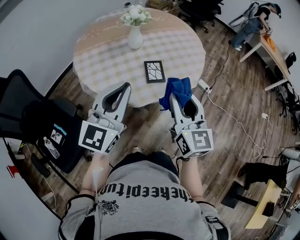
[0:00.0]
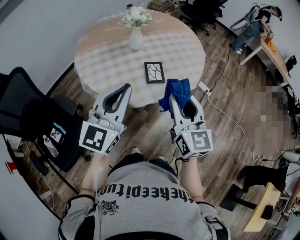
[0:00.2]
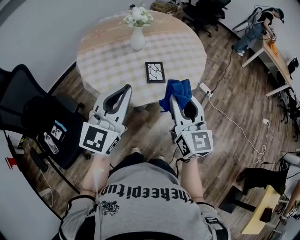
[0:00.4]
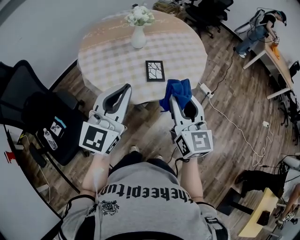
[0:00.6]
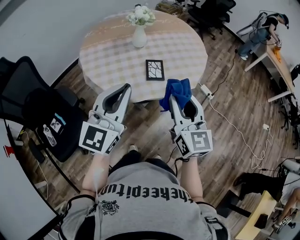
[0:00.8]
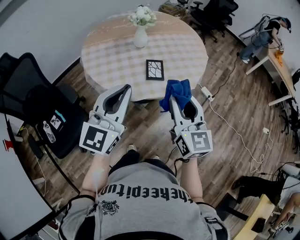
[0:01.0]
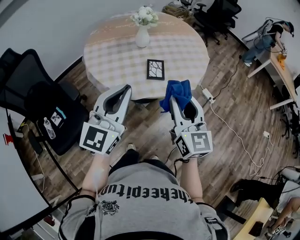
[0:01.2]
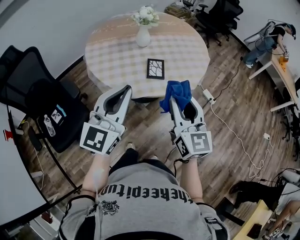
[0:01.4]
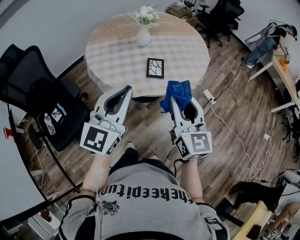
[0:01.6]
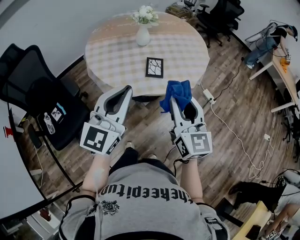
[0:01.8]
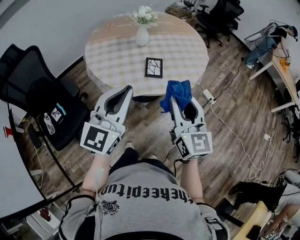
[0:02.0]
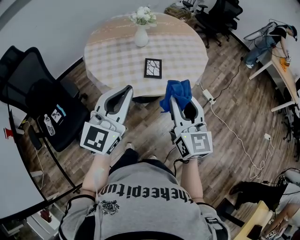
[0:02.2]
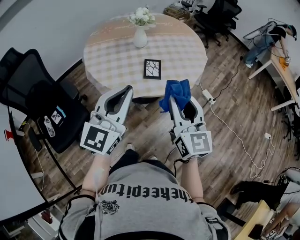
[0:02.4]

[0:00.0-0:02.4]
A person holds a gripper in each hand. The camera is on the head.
0:00.0 to 0:01.2: The right gripper moves roughly 5 cm; the left gripper travels backward and to the right by some 10 cm.
0:01.2 to 0:02.4: The grippers move only a little.

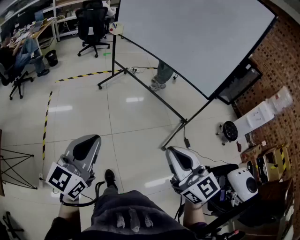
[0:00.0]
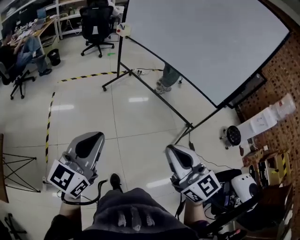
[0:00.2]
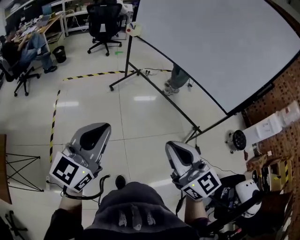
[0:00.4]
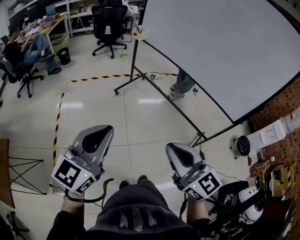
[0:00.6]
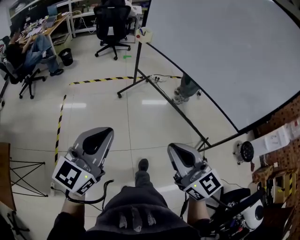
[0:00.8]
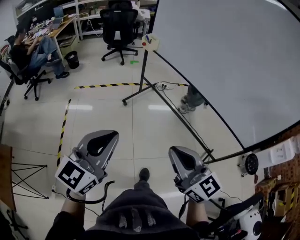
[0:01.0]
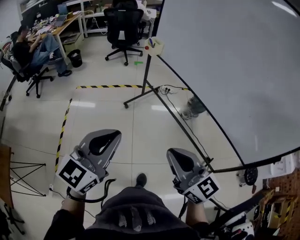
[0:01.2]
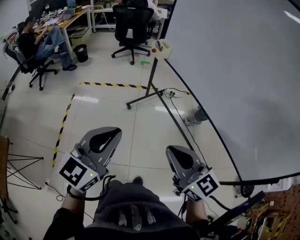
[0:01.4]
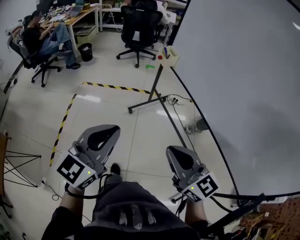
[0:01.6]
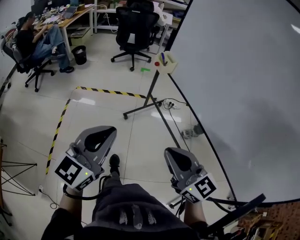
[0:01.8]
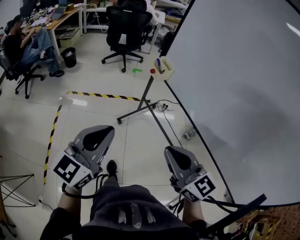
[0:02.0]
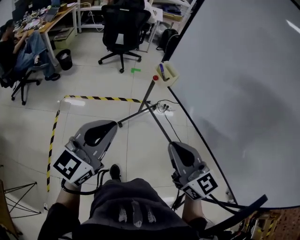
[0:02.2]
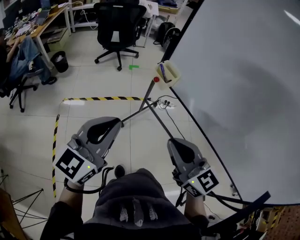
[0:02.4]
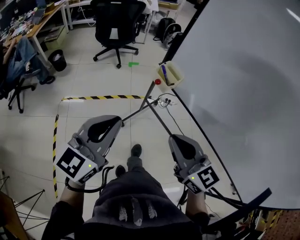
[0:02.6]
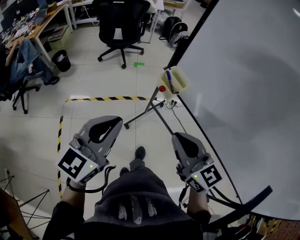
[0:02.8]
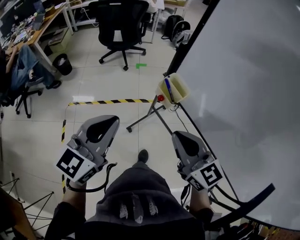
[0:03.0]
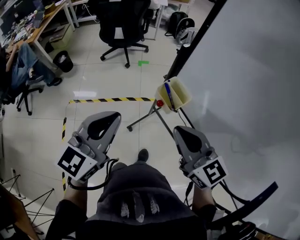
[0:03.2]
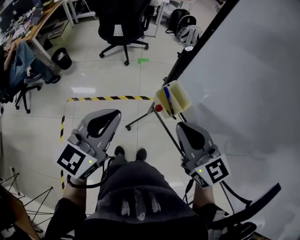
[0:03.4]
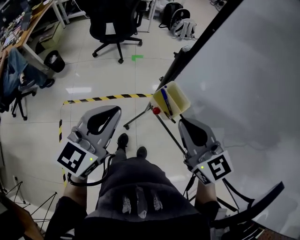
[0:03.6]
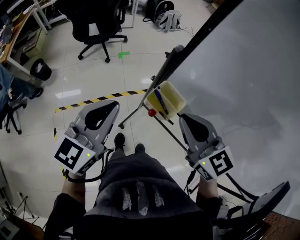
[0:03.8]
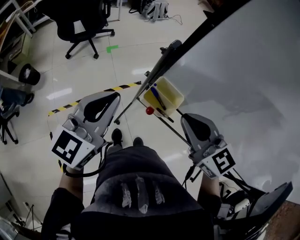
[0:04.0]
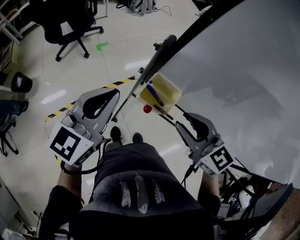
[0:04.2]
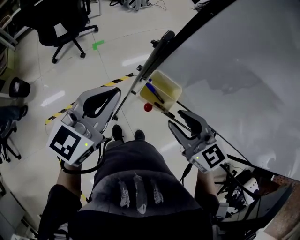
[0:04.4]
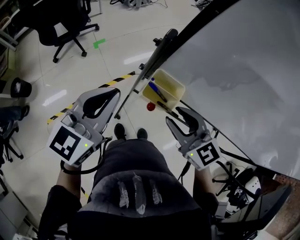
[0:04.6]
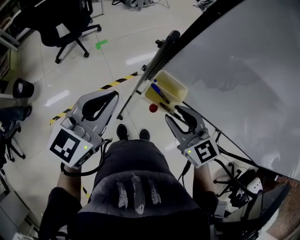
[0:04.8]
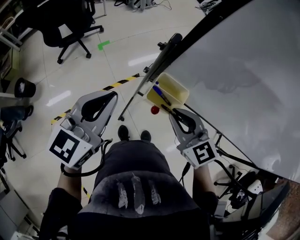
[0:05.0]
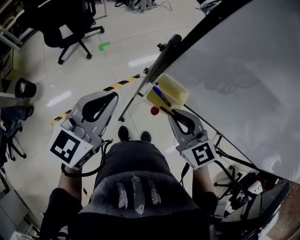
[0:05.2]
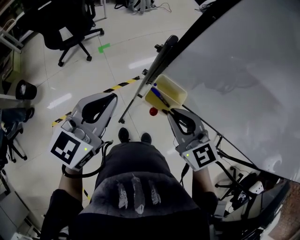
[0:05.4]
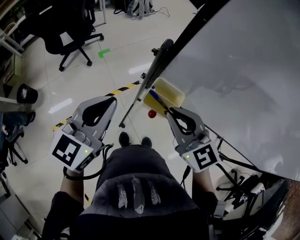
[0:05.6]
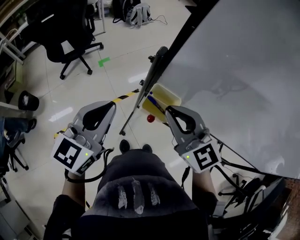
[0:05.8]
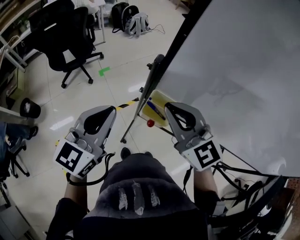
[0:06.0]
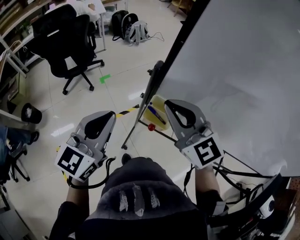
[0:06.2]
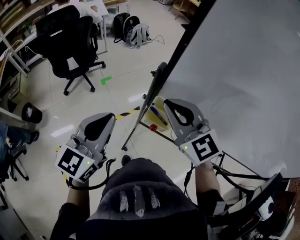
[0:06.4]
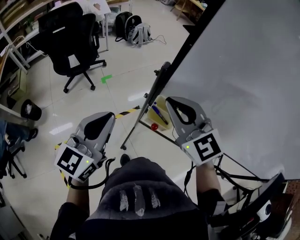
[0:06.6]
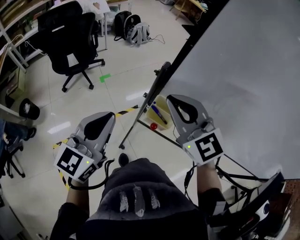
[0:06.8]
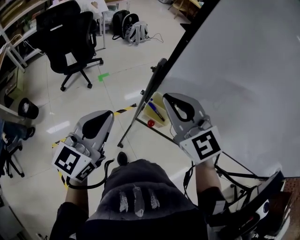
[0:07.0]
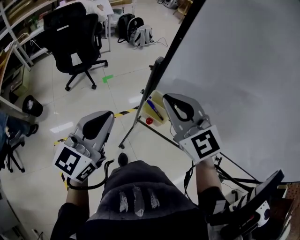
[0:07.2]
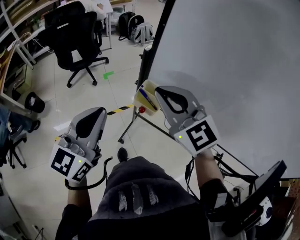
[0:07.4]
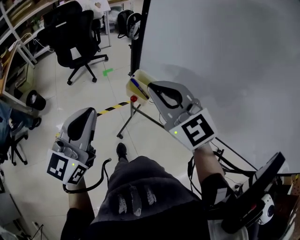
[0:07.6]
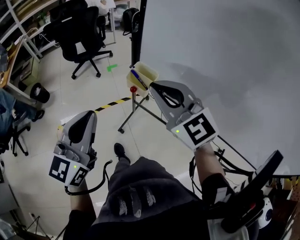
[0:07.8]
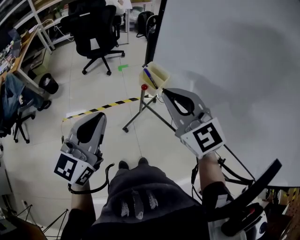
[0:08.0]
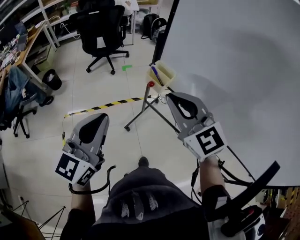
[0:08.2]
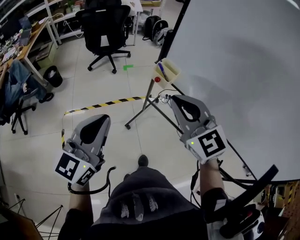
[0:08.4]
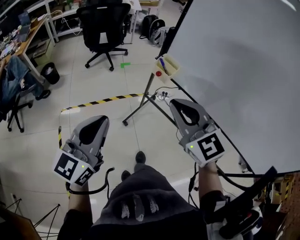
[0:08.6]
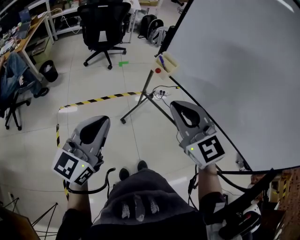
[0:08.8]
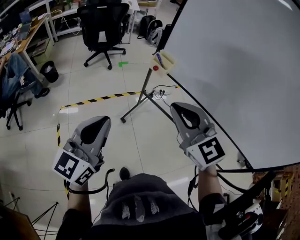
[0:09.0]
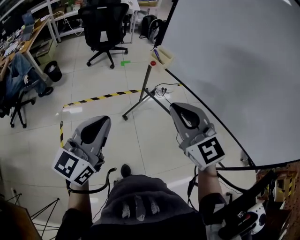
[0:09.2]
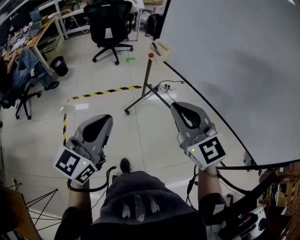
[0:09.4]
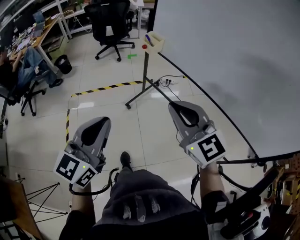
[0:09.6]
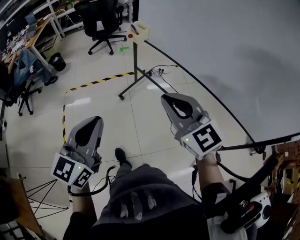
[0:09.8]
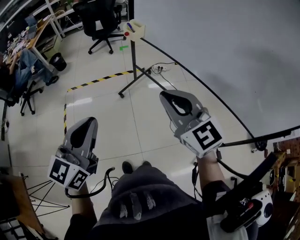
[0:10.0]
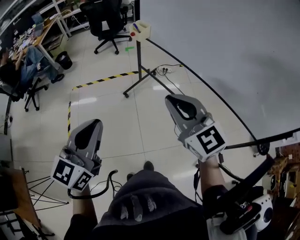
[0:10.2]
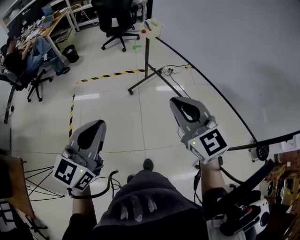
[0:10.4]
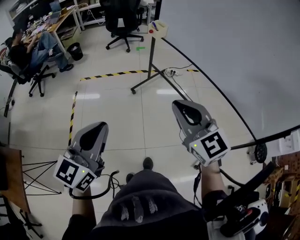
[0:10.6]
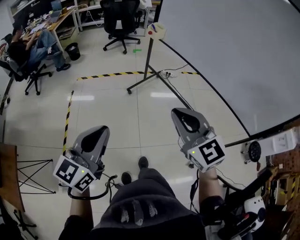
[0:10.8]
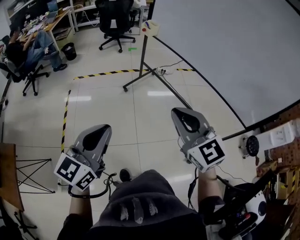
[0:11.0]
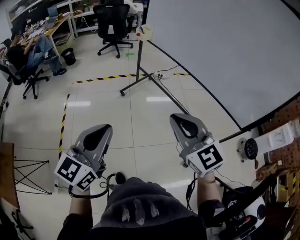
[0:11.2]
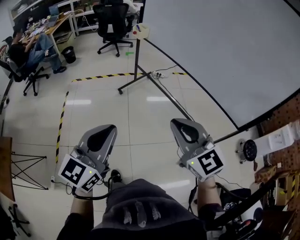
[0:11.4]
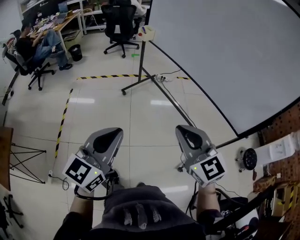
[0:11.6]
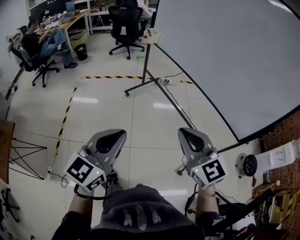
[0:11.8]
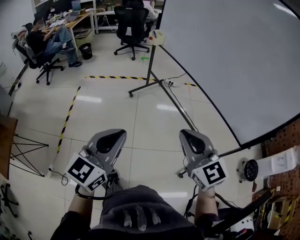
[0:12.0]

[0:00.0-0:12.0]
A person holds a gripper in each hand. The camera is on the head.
0:00.0 to 0:01.6: The two grippers travel together, forward, some 50 cm. The right gripper changes its angle by some 20 degrees.
0:01.6 to 0:03.0: Both grippers are carried forward, some 50 cm.
0:03.0 to 0:04.4: The left gripper moves forward, roughly 20 cm, and changes its angle by about 30 degrees. Meanwhile the right gripper is displaced forward and downward by roughly 15 cm, changes its angle by roughly 20 degrees, and opens.
0:04.4 to 0:06.0: The right gripper is displaced upward by roughly 10 cm, swivels about 20 degrees, and closes up.
0:06.0 to 0:07.6: The right gripper is displaced backward by approximately 10 cm; the left gripper is displaced backward by approximately 15 cm.
0:07.6 to 0:09.0: The two grippers go roughly 25 cm backward.
0:09.0 to 0:10.4: Both grippers travel together backward and to the right, some 35 cm.
0:10.4 to 0:12.0: Both grippers move backward and to the right, some 25 cm.

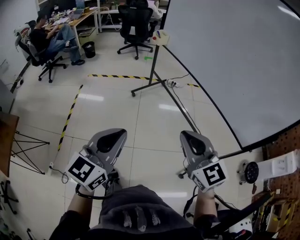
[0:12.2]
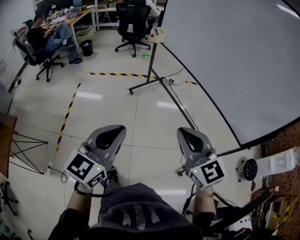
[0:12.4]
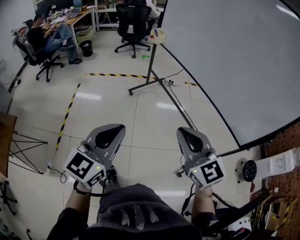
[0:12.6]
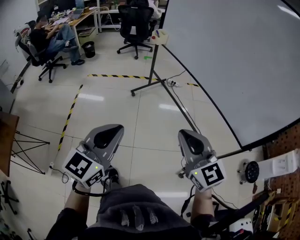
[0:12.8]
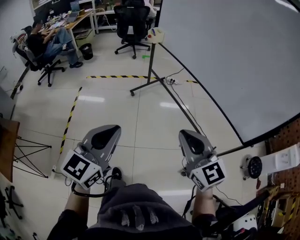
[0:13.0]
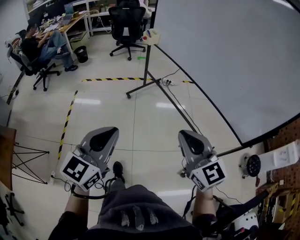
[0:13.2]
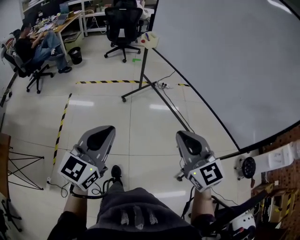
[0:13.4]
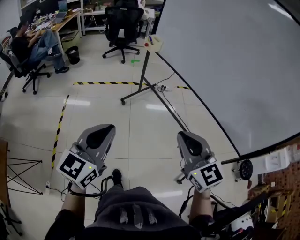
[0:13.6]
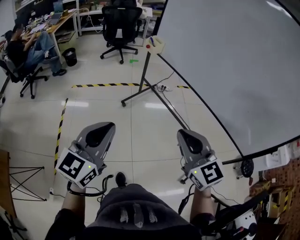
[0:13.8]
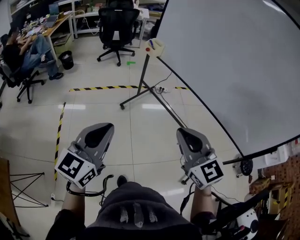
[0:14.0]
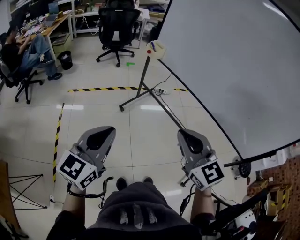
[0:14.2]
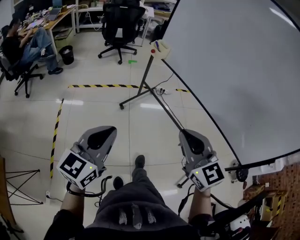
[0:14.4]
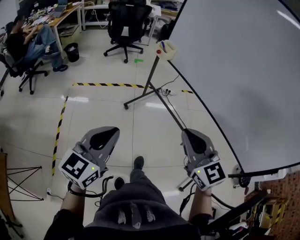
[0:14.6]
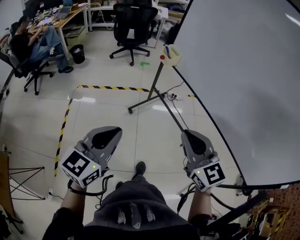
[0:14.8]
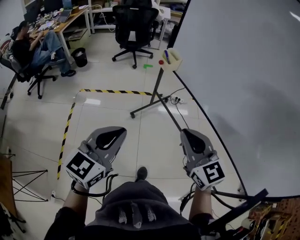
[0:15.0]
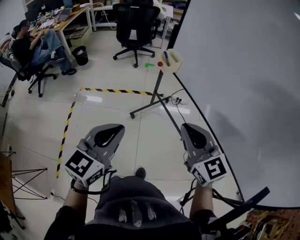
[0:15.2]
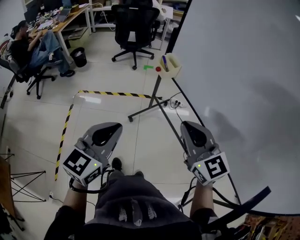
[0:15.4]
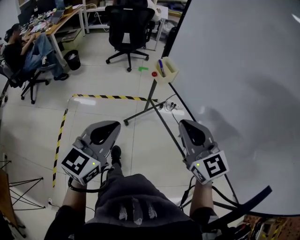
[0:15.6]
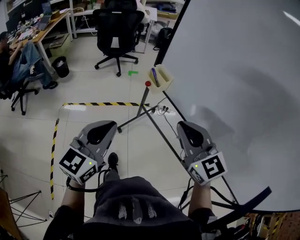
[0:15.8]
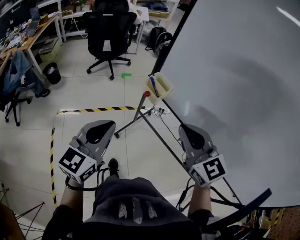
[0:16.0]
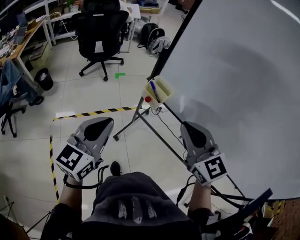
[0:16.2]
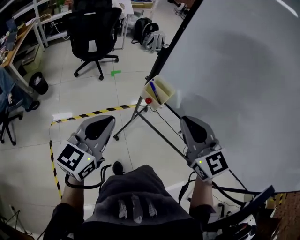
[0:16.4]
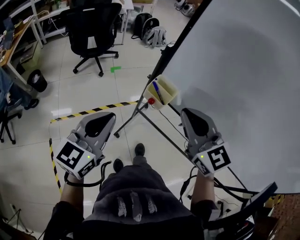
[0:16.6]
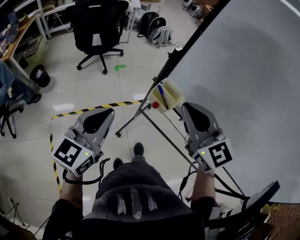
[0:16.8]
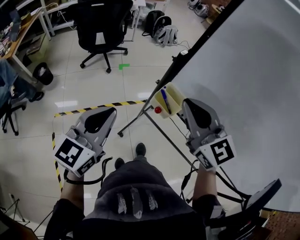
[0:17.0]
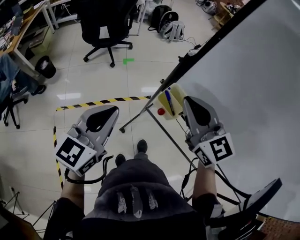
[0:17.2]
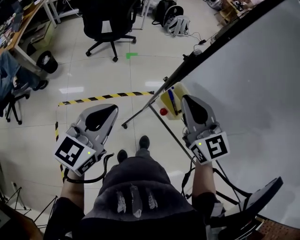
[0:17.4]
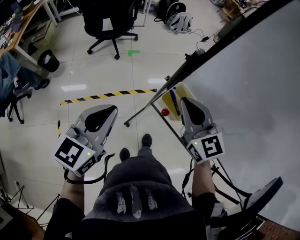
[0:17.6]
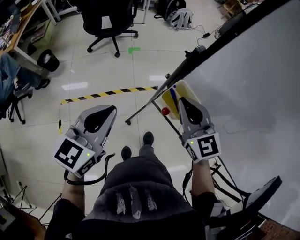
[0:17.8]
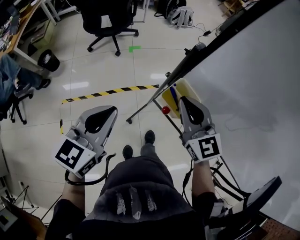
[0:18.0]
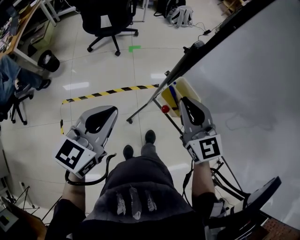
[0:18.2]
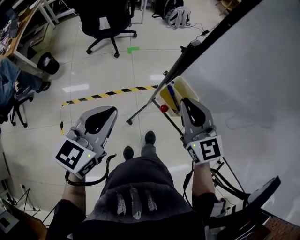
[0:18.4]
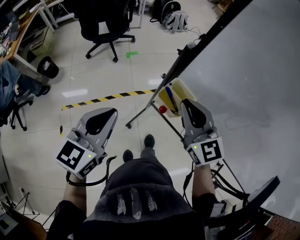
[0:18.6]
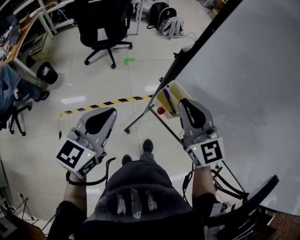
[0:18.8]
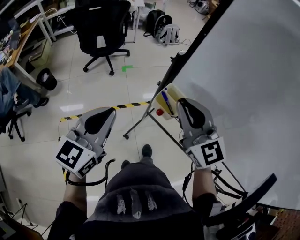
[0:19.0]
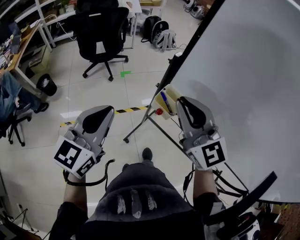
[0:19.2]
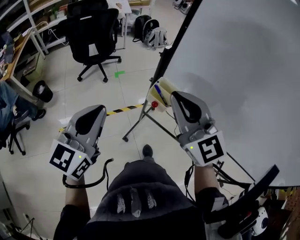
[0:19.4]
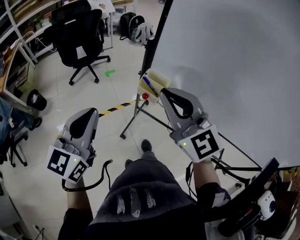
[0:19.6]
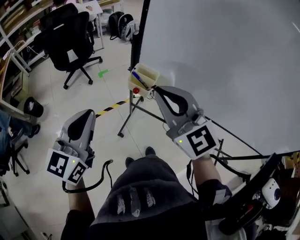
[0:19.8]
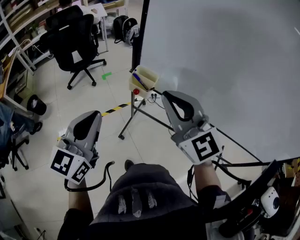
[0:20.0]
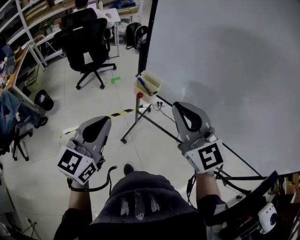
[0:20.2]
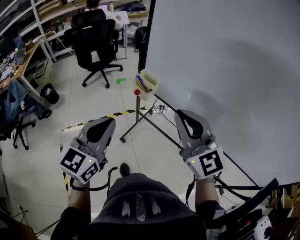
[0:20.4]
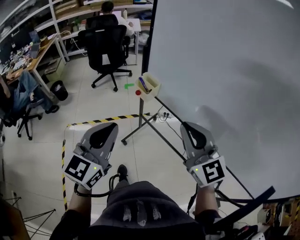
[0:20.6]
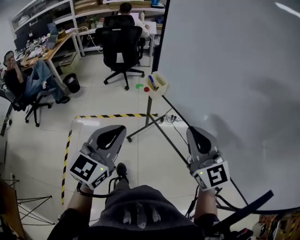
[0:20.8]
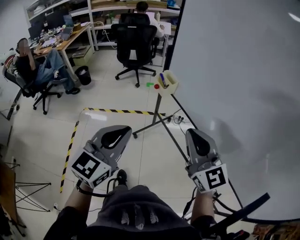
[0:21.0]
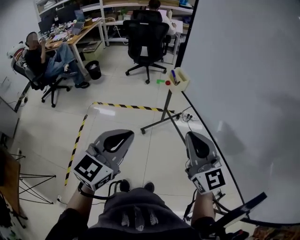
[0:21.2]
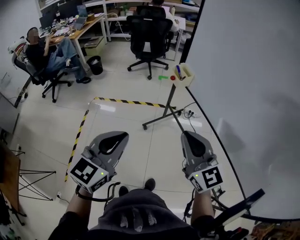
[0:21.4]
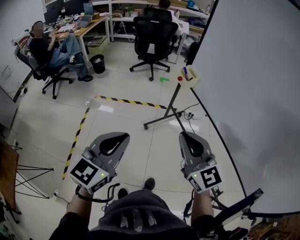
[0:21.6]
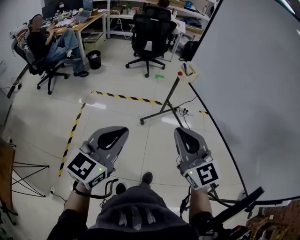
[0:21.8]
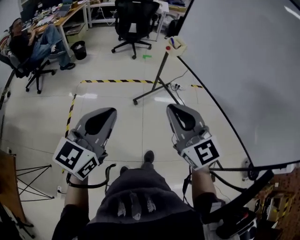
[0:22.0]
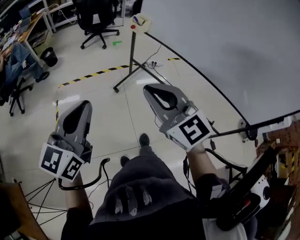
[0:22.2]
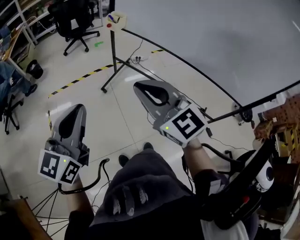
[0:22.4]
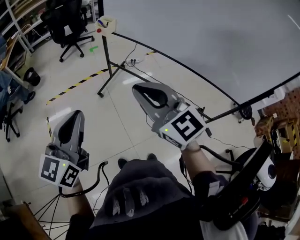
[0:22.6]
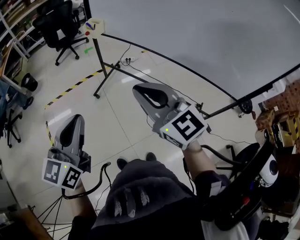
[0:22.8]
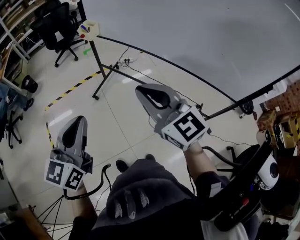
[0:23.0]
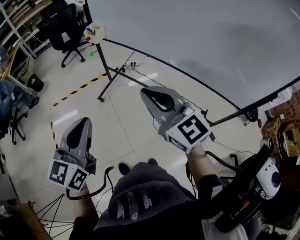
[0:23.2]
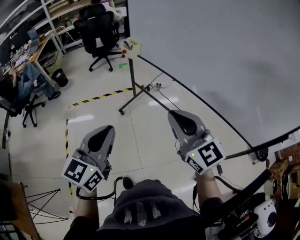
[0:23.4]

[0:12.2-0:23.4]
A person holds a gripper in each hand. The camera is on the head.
0:12.2 to 0:13.8: Both grippers travel together forward and to the left, some 20 cm.
0:13.8 to 0:15.4: Both grippers move forward, about 30 cm.
0:15.4 to 0:17.0: Both grippers move forward, about 35 cm.
0:17.0 to 0:18.6: The right gripper travels downward by some 10 cm.
0:18.6 to 0:20.2: The grippers both shift backward and upward by approximately 20 cm.
0:20.2 to 0:21.8: Both grippers move backward, about 35 cm. The right gripper turns by approximately 30 degrees.
0:21.8 to 0:23.4: Both grippers move to the right and backward, roughly 20 cm.
